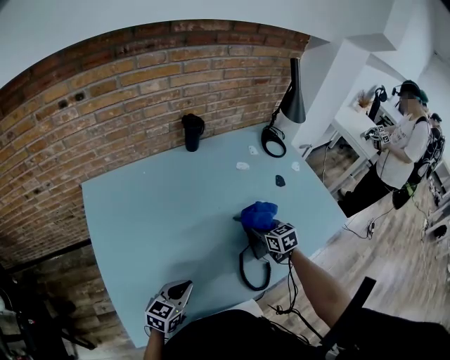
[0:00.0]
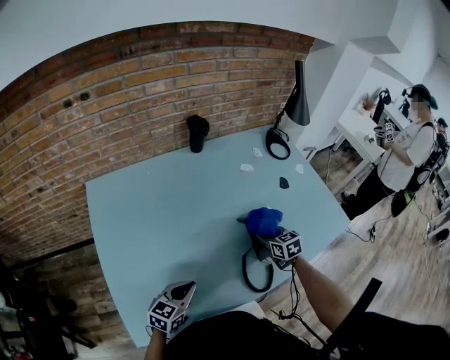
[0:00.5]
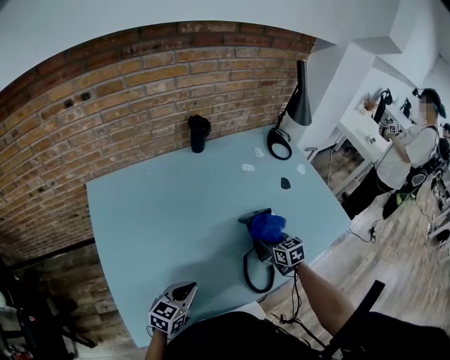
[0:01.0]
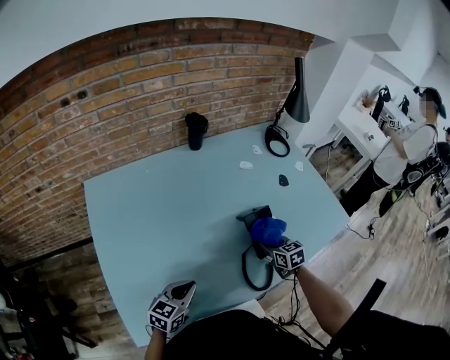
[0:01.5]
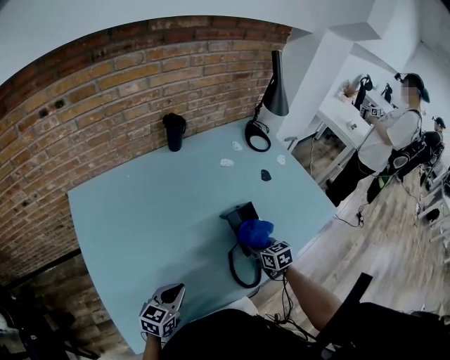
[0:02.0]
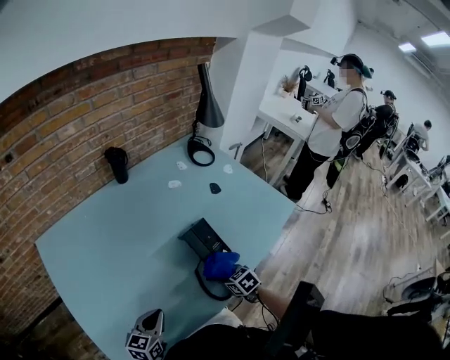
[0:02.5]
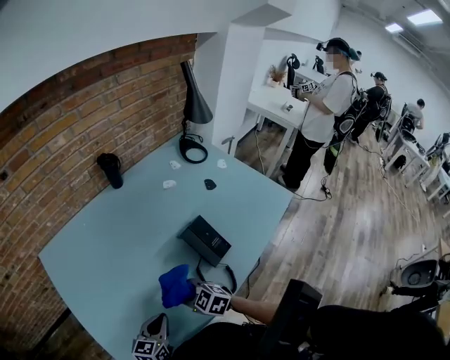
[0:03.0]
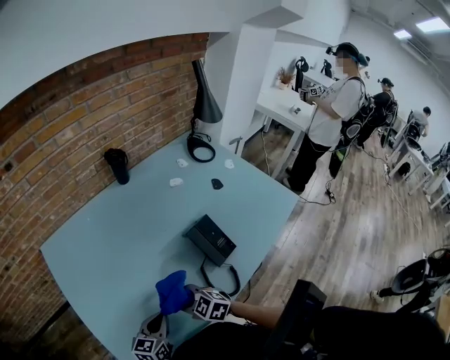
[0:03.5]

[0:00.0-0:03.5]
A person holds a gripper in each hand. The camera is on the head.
0:00.0 to 0:02.0: The right gripper is displaced backward by approximately 5 cm.
0:02.0 to 0:03.5: The right gripper is displaced to the left and backward by roughly 25 cm, and turns by some 40 degrees.

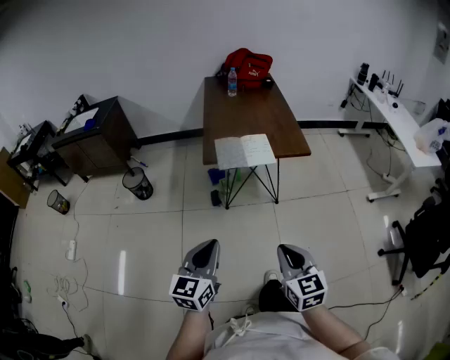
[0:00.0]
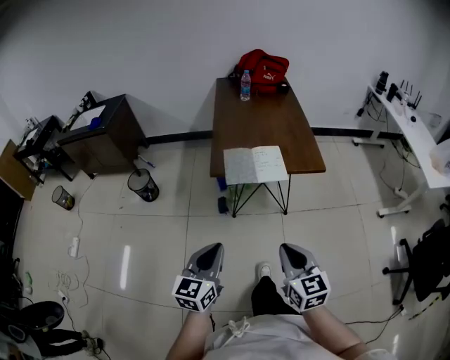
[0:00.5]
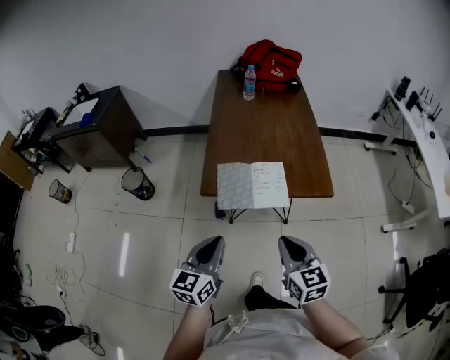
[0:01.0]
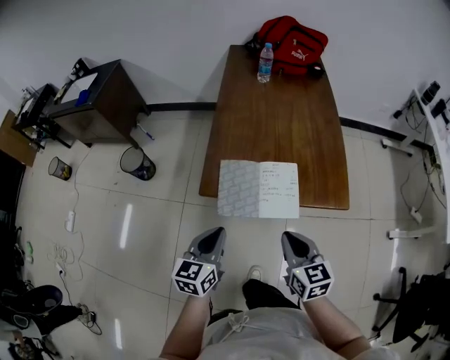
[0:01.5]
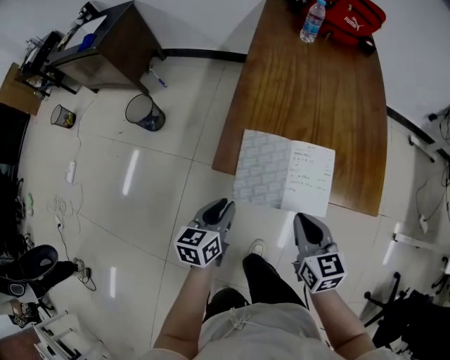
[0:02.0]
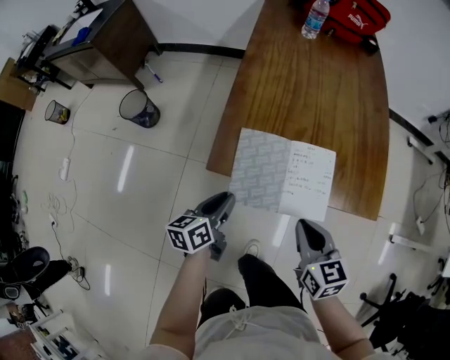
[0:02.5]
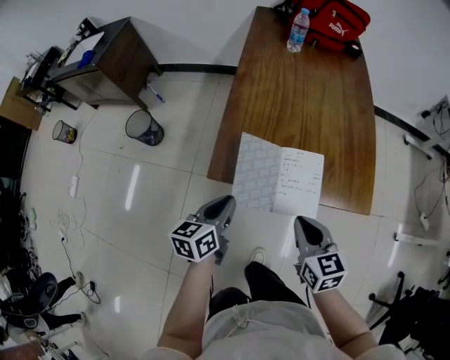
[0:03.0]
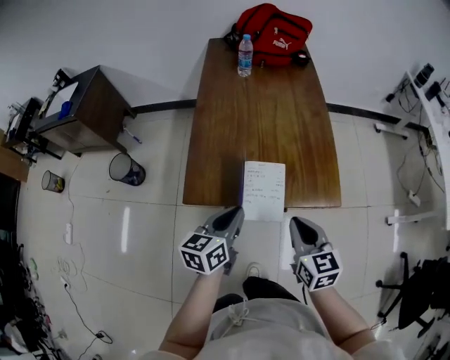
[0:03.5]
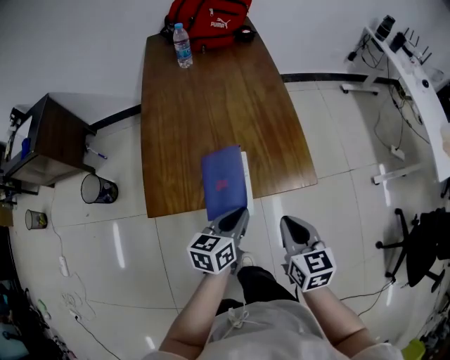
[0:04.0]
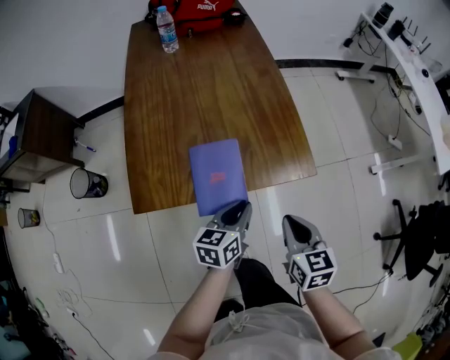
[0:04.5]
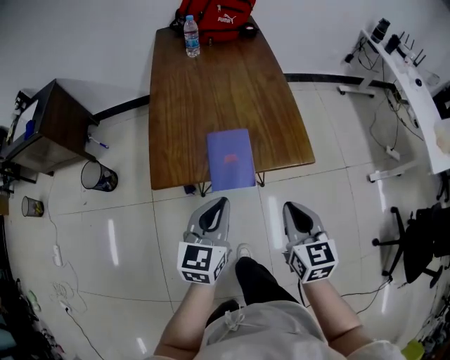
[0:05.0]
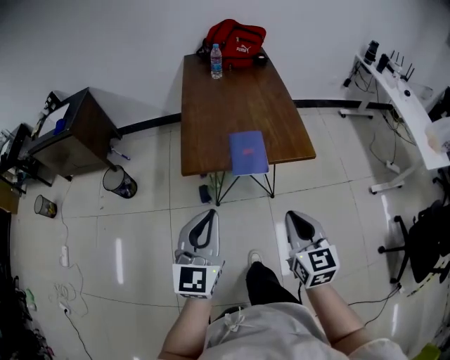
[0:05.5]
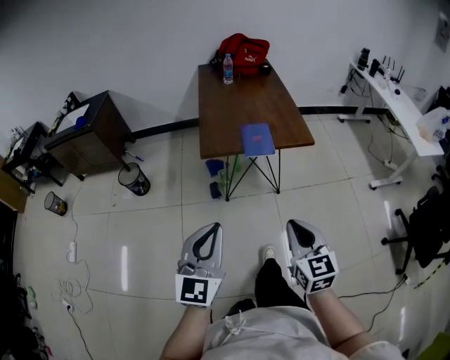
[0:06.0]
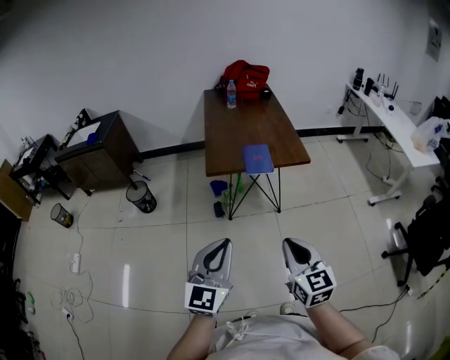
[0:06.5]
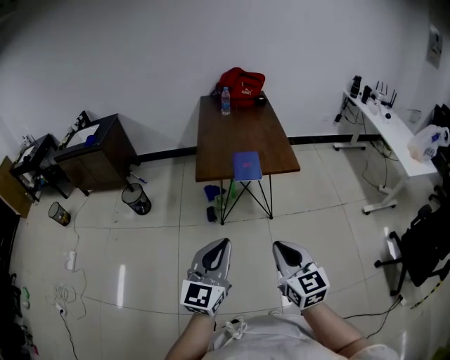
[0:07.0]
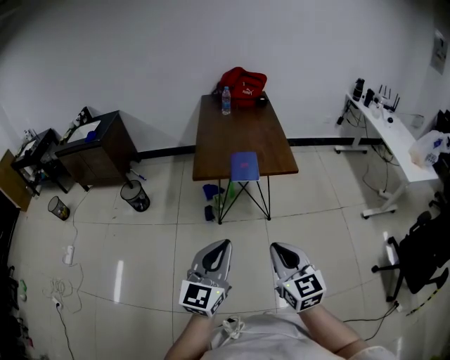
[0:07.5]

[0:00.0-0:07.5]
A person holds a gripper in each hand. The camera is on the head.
0:00.0 to 0:02.0: The pair of grippers is taken forward, approximately 50 cm. The left gripper heads downward, covering about 20 cm, and swivels approximately 30 degrees, while the right gripper rotates roughly 20 degrees.
0:02.0 to 0:04.0: The right gripper goes upward and returns, roughly 5 cm each way, and rotates about 20 degrees. The left gripper travels upward and back again, approximately 10 cm each way, and swivels approximately 30 degrees.
0:04.0 to 0:05.5: The left gripper heads backward, upward and to the left, covering approximately 35 cm, and swivels some 50 degrees; the right gripper shifts about 25 cm backward and upward.
0:05.5 to 0:07.5: The grippers both shift backward by some 25 cm.

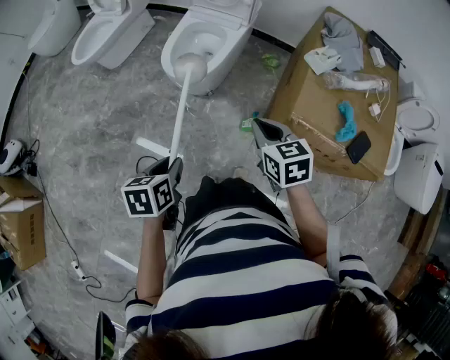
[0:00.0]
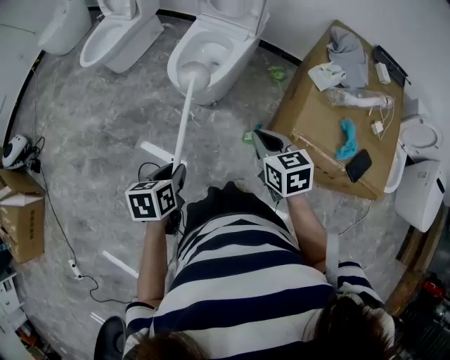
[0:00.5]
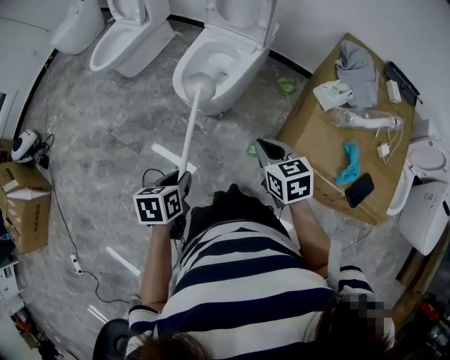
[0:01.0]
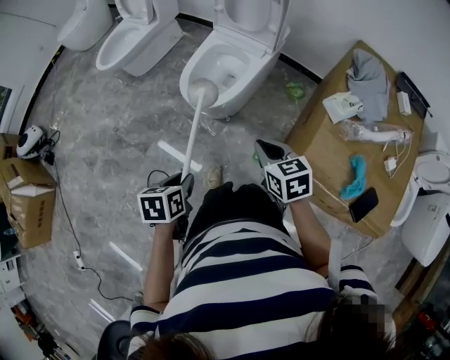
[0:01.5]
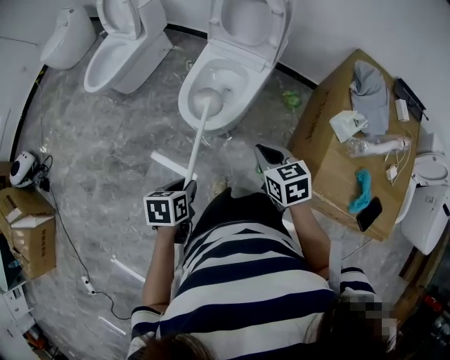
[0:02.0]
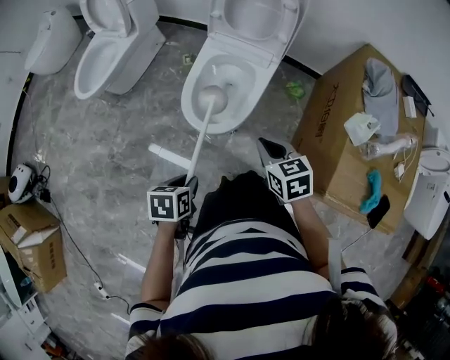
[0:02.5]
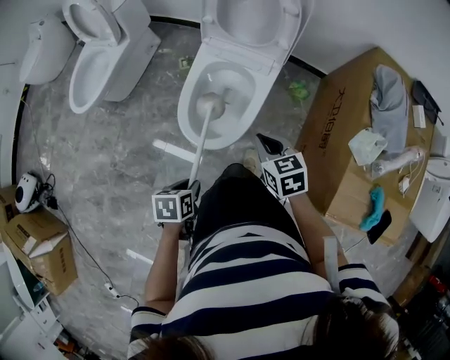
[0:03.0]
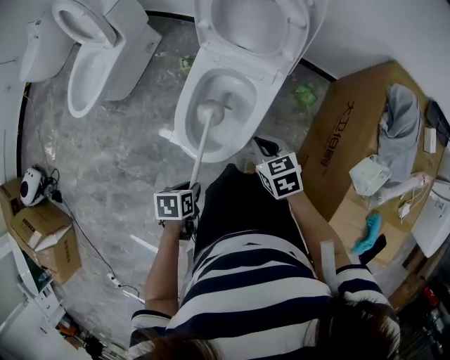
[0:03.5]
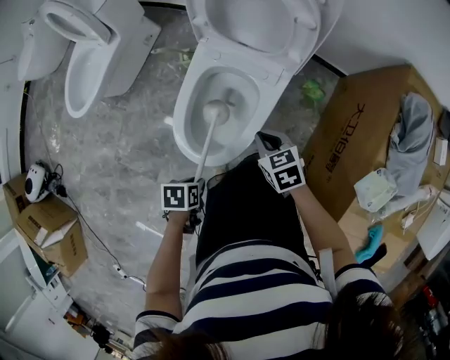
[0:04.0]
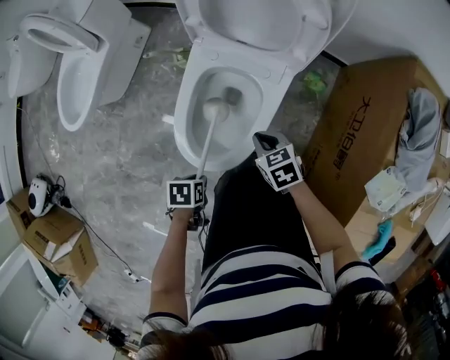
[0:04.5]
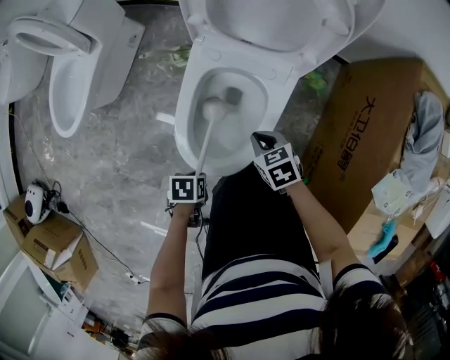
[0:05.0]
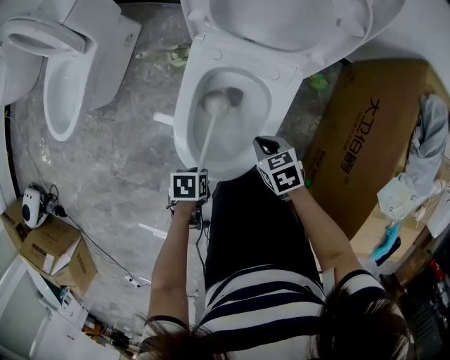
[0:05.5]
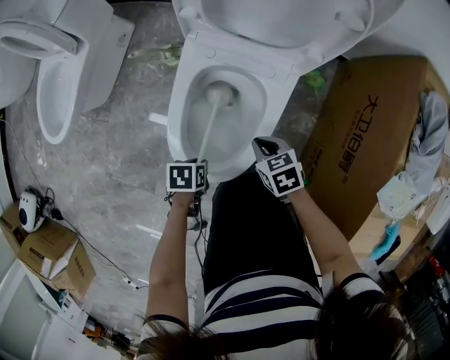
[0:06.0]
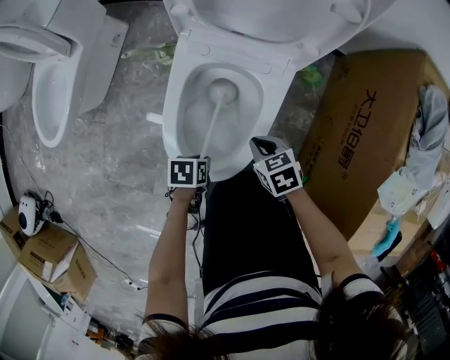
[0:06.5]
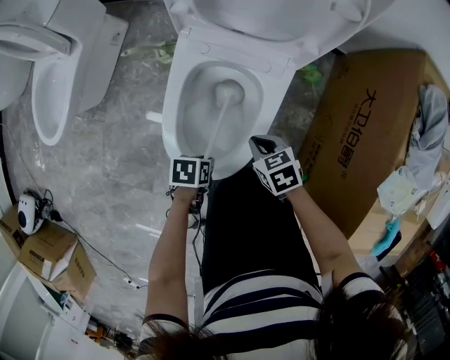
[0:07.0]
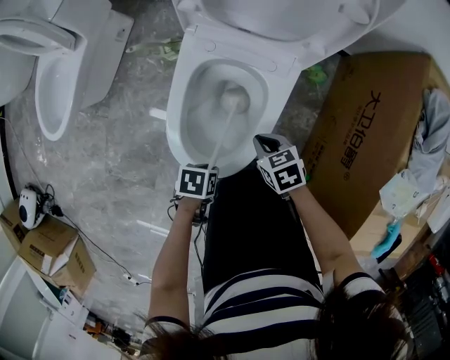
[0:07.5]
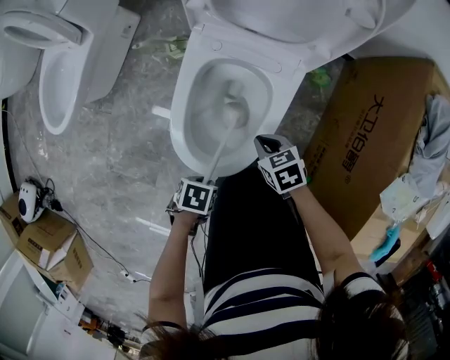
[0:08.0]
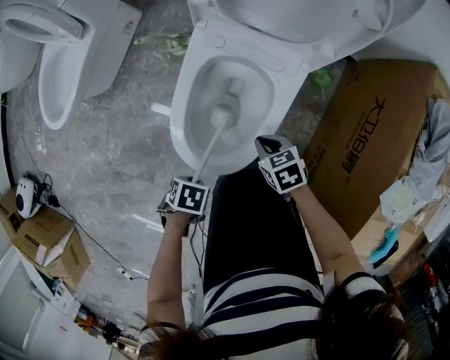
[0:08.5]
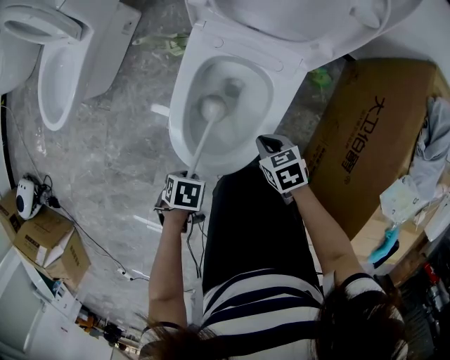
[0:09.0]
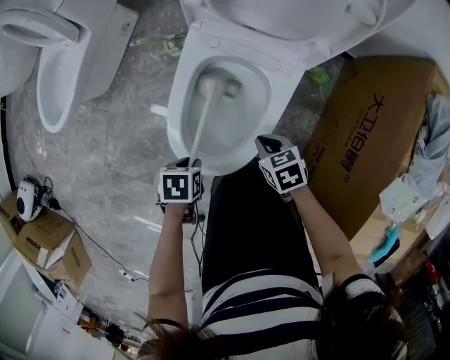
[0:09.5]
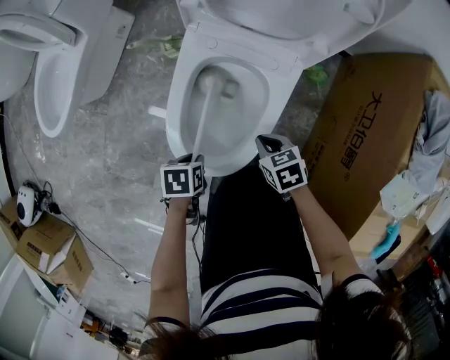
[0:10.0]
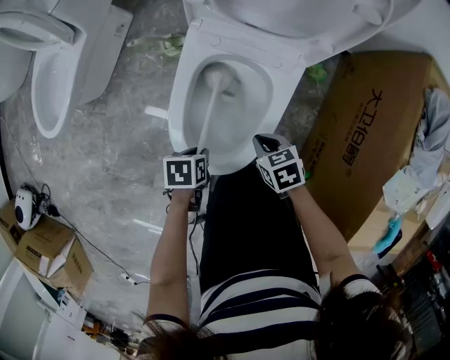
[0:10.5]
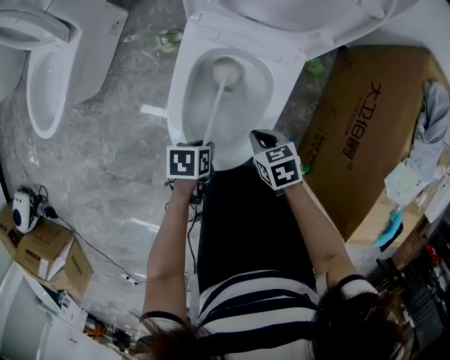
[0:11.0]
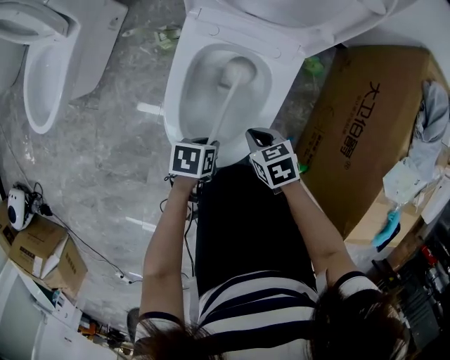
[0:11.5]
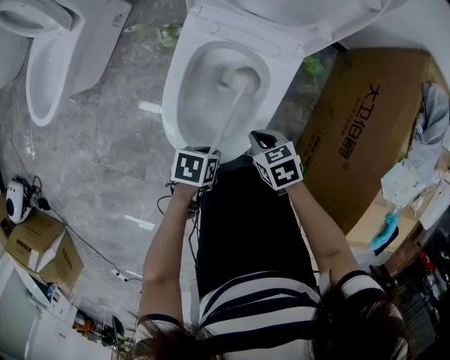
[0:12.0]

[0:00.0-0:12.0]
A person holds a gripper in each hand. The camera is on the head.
0:00.0 to 0:02.0: The right gripper changes place by roughly 20 cm.
0:02.0 to 0:04.0: The right gripper ends up approximately 35 cm from where it was.
0:04.0 to 0:06.0: The right gripper is displaced downward by some 10 cm.

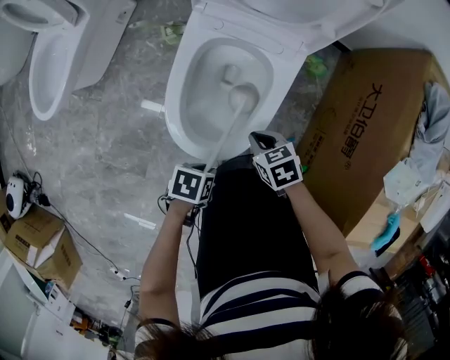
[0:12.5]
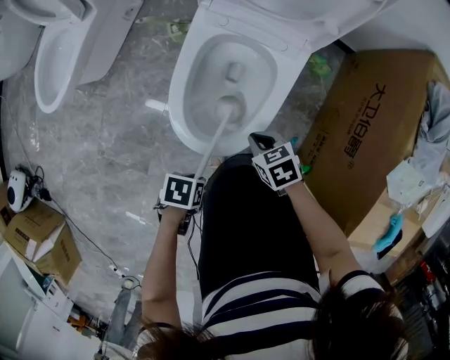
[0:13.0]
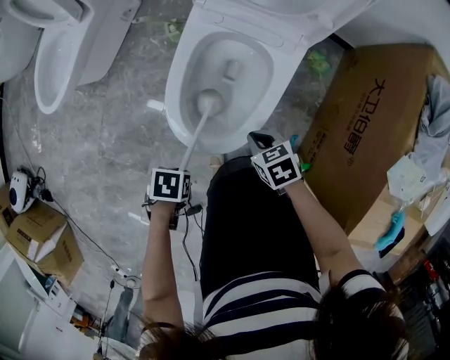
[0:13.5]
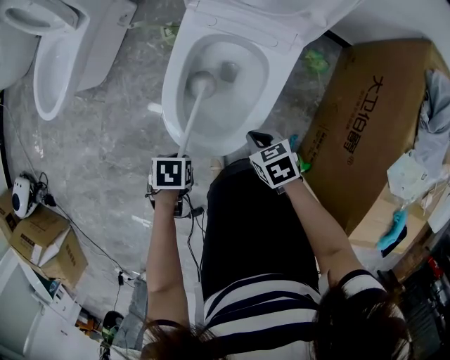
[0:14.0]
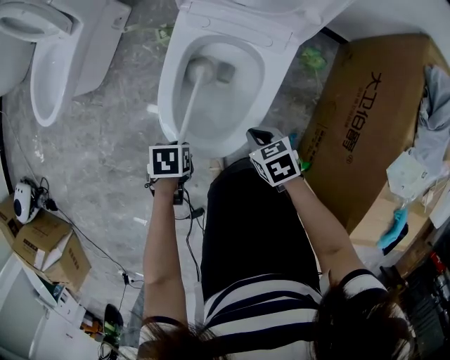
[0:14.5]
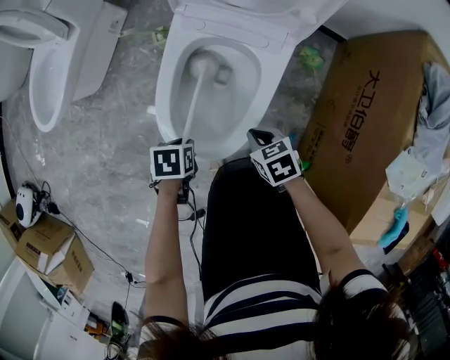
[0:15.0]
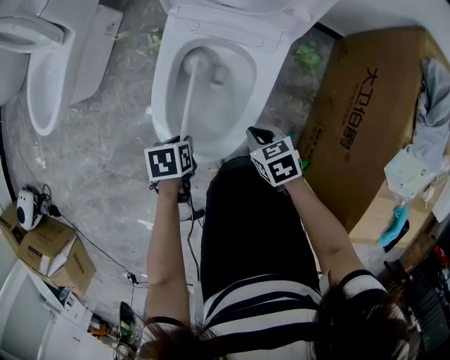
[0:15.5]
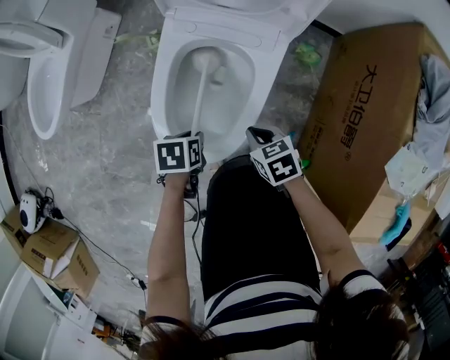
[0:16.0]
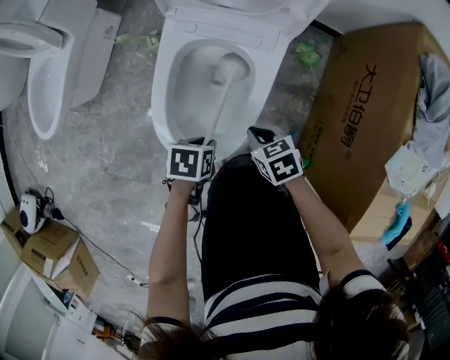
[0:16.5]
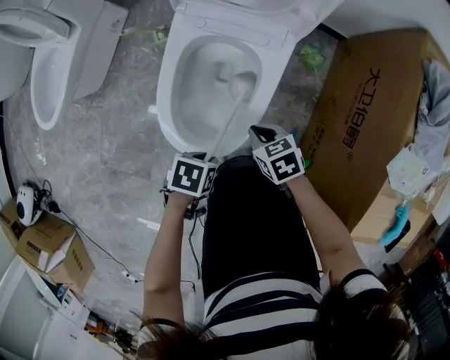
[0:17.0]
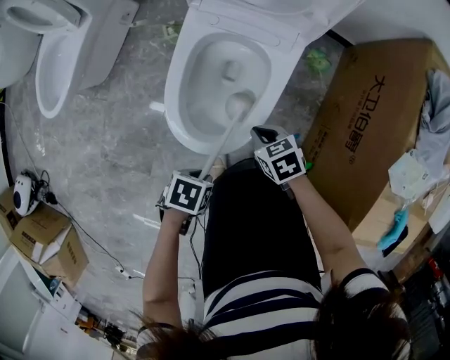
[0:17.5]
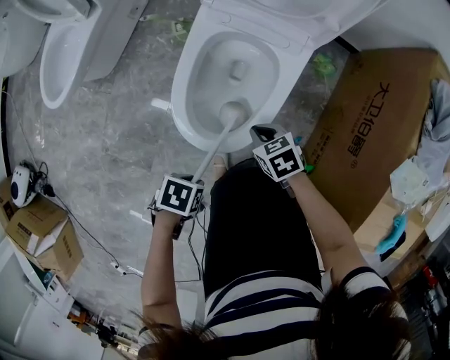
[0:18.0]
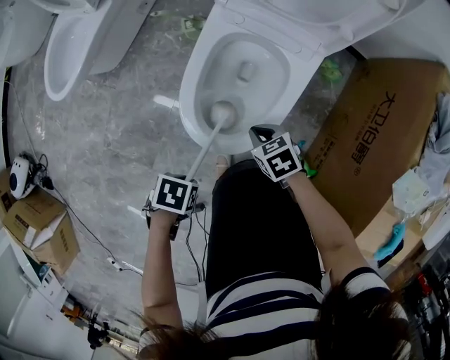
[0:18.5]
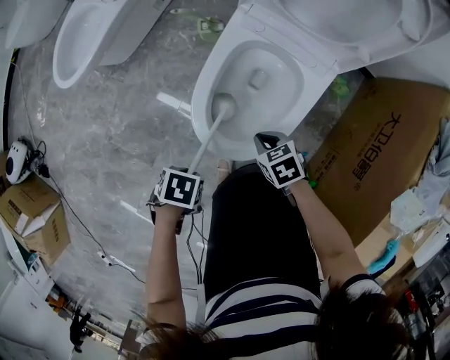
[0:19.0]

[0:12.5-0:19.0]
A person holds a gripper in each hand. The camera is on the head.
0:17.0 to 0:19.0: The right gripper ends up roughly 10 cm from where it was.
